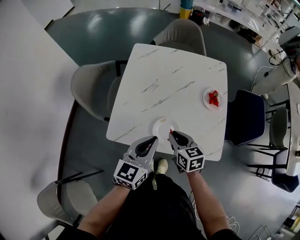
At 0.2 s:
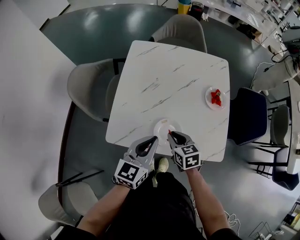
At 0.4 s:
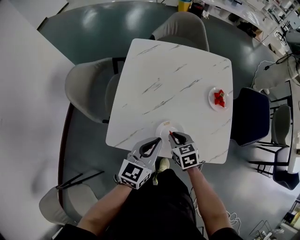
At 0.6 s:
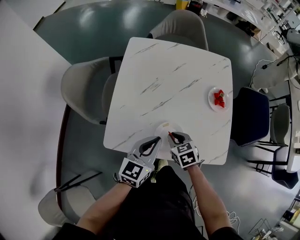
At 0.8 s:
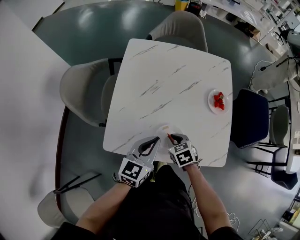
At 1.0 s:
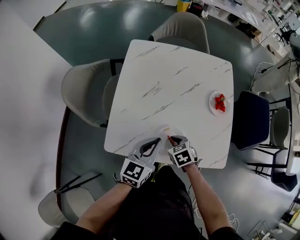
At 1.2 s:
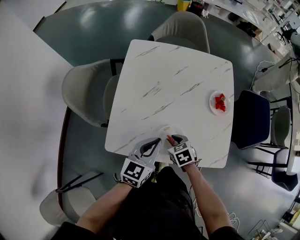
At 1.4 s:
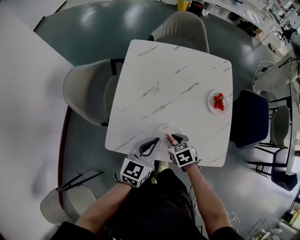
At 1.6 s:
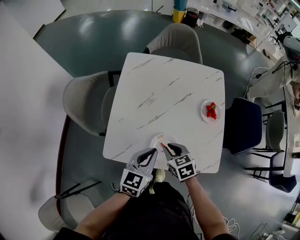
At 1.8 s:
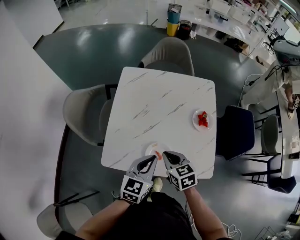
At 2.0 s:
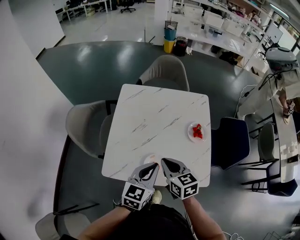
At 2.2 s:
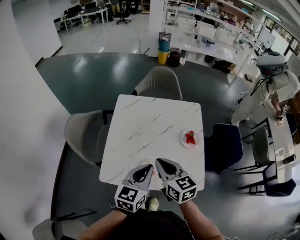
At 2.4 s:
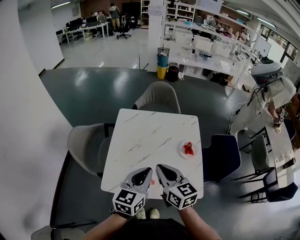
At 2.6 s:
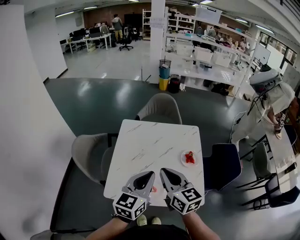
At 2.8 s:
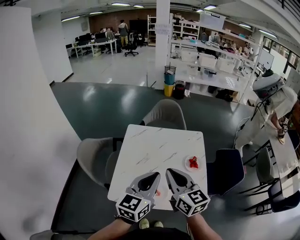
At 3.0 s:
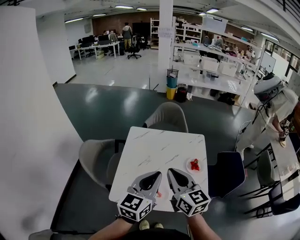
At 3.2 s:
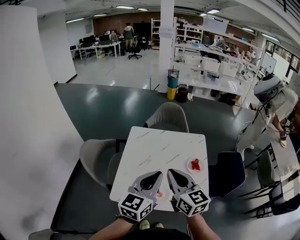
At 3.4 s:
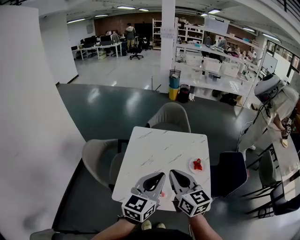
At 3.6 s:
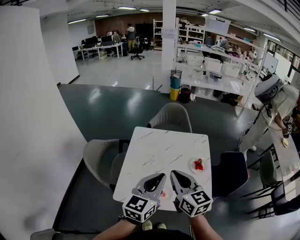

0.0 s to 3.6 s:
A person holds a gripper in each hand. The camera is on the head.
0.0 to 1.8 s: The left gripper reaches approximately 10 cm downward, then returns. The right gripper moves about 15 cm downward and comes back.
1.8 to 3.6 s: Both grippers travel together upward, roughly 25 cm. The right gripper angles its fingers upward, by some 30 degrees.

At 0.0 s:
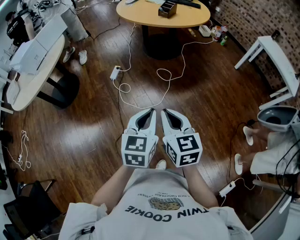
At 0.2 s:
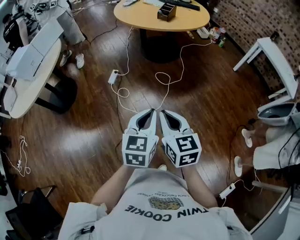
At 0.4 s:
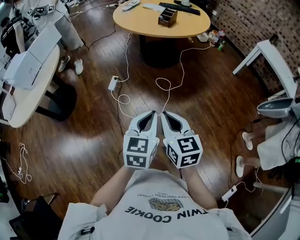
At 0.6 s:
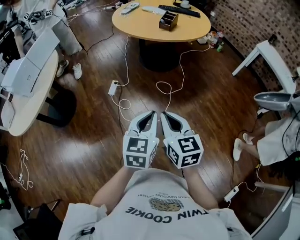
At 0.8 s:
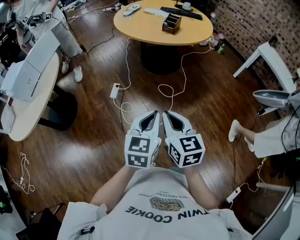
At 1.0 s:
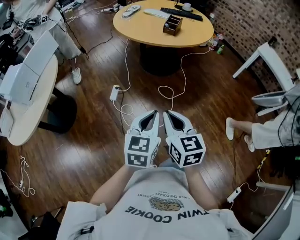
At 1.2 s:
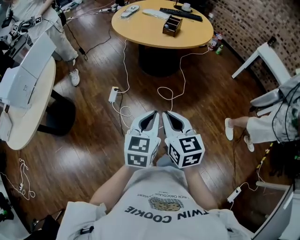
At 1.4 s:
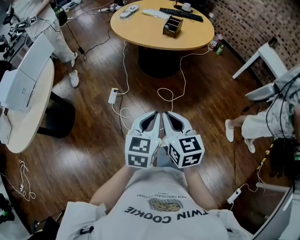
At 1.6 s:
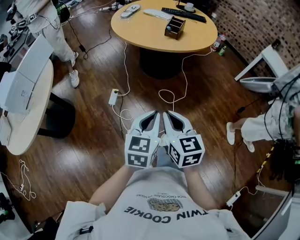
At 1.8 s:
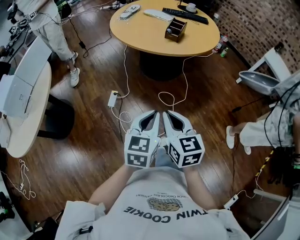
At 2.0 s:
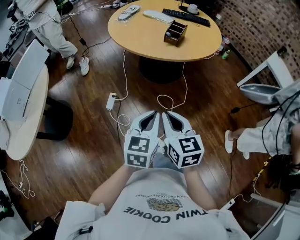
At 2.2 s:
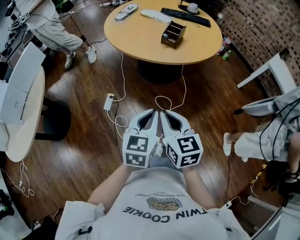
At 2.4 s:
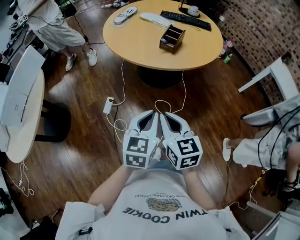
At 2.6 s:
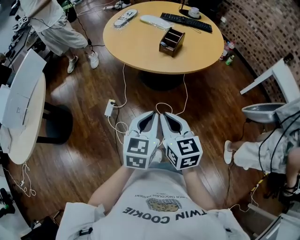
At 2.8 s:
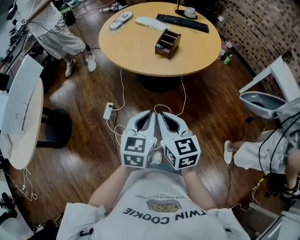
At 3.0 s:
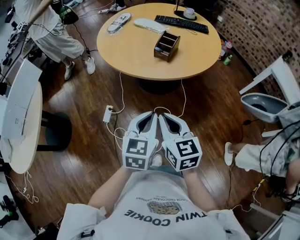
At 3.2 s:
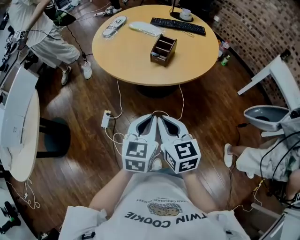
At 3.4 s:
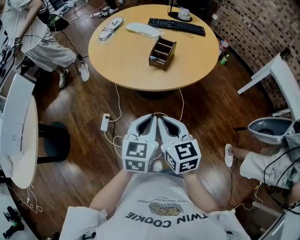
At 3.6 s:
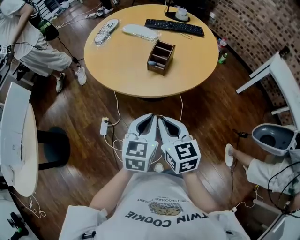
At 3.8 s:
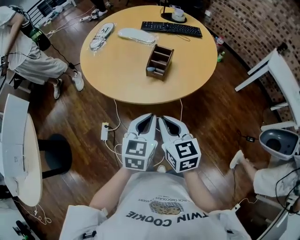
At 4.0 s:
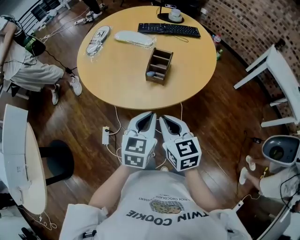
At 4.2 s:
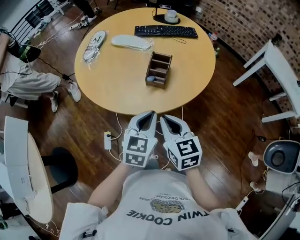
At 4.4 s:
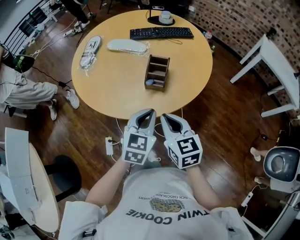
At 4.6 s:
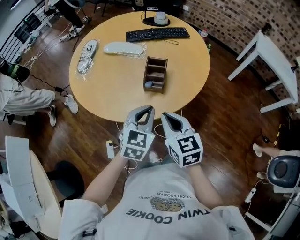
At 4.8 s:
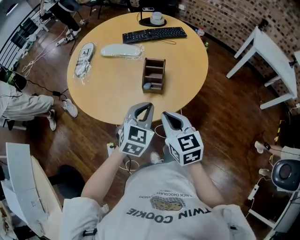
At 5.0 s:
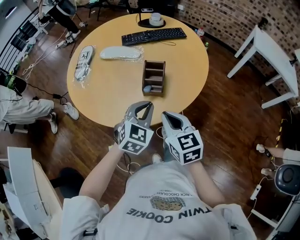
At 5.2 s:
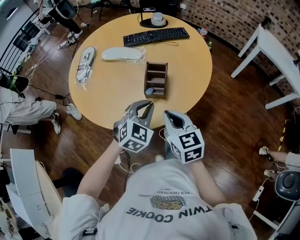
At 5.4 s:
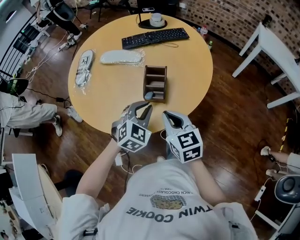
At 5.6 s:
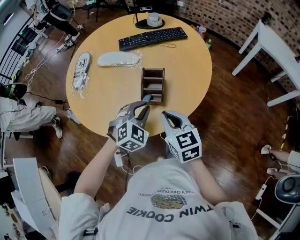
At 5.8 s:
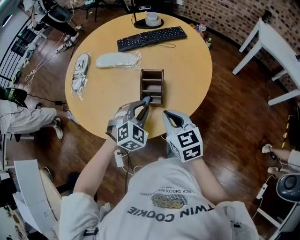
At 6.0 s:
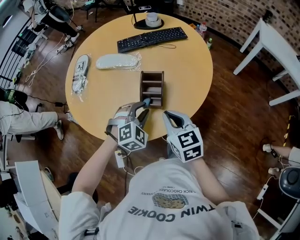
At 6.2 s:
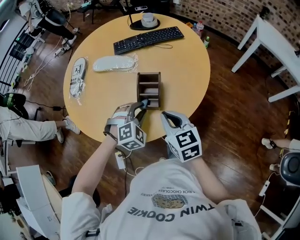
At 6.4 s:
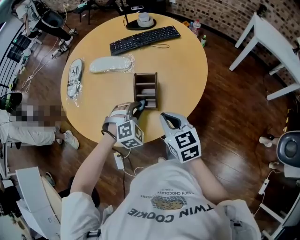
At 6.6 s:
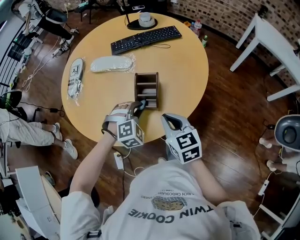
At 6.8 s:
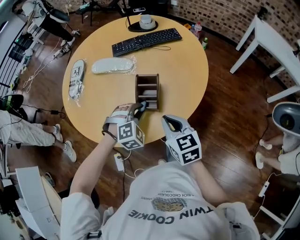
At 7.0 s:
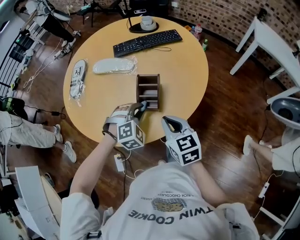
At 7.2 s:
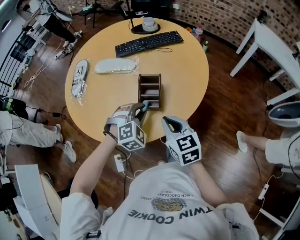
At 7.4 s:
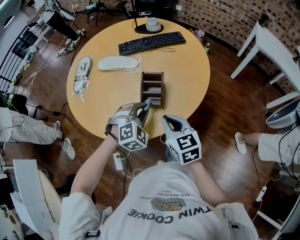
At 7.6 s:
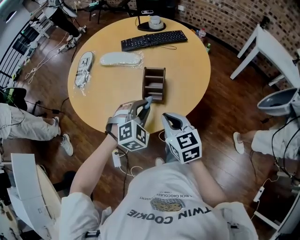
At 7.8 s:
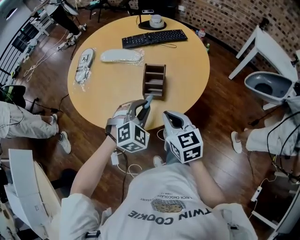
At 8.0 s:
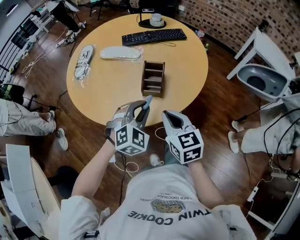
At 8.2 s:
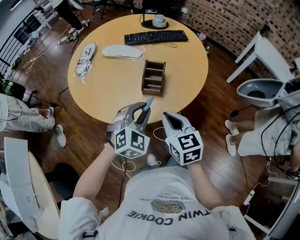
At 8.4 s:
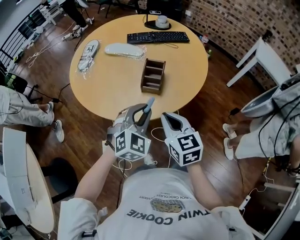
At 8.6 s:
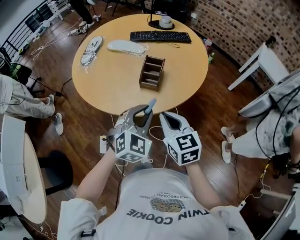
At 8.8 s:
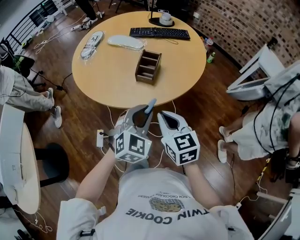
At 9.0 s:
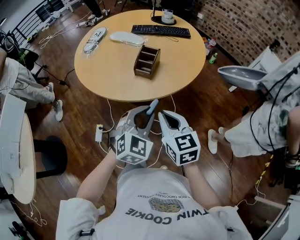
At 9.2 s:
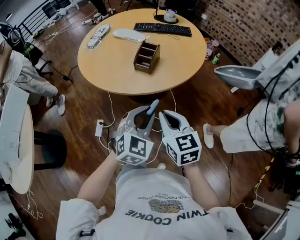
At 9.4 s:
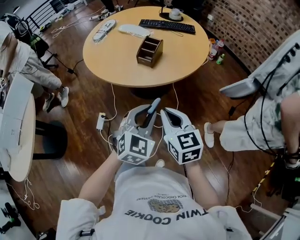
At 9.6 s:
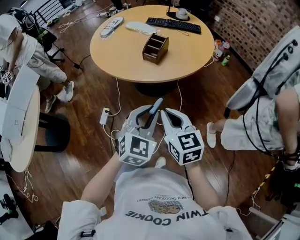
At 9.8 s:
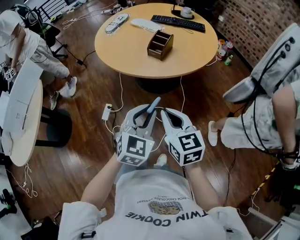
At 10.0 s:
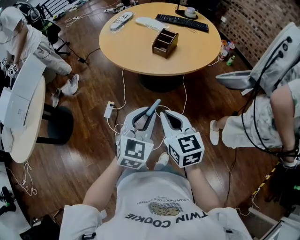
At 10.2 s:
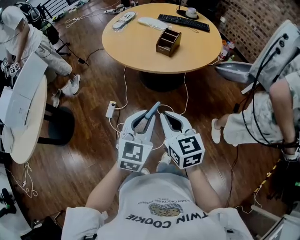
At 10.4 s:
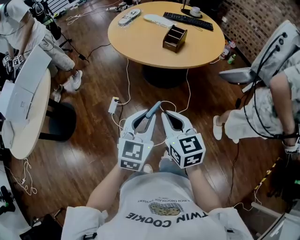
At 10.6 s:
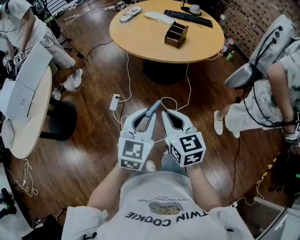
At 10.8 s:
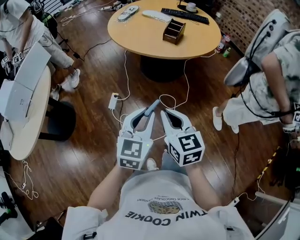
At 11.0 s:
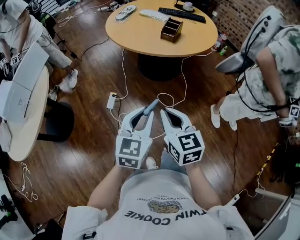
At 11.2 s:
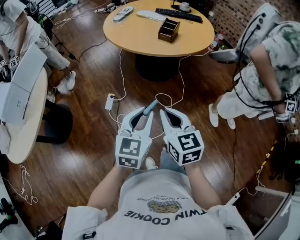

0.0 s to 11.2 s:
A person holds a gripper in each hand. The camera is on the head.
0.0 to 1.6 s: Both grippers move forward and to the left, about 30 cm.
1.6 to 3.2 s: The two grippers go some 30 cm forward and to the right.
3.2 to 4.8 s: The grippers both shift forward by approximately 25 cm. The left gripper swivels some 40 degrees.
4.8 to 6.4 s: Both grippers travel together forward and downward, some 15 cm. The left gripper twists roughly 50 degrees clockwise, seen from behind.
6.4 to 8.0 s: The left gripper is displaced backward and upward by about 15 cm, and rotates some 20 degrees; the right gripper goes roughly 10 cm backward.
8.0 to 9.6 s: The two grippers go about 30 cm backward and to the right. The left gripper rotates approximately 30 degrees, while the right gripper turns by about 20 degrees.
9.6 to 11.2 s: The two grippers go approximately 25 cm backward and to the left. The left gripper rotates roughly 20 degrees.

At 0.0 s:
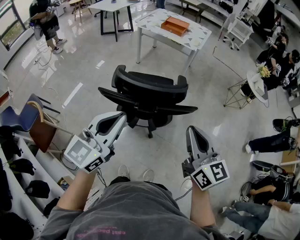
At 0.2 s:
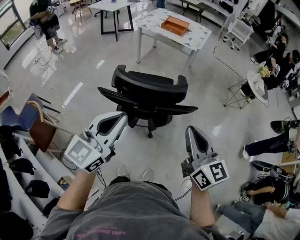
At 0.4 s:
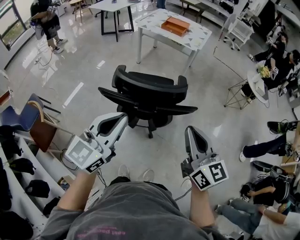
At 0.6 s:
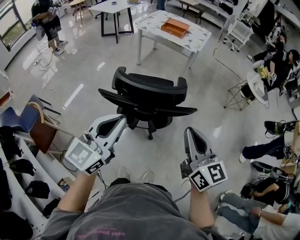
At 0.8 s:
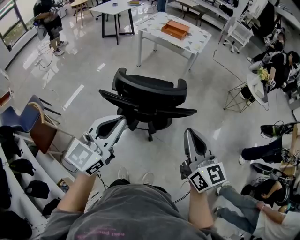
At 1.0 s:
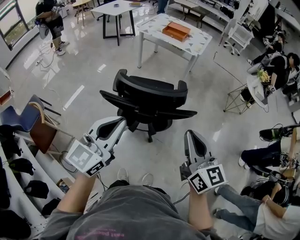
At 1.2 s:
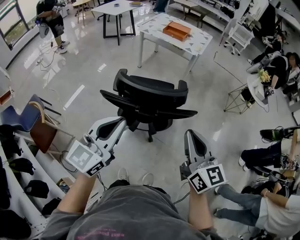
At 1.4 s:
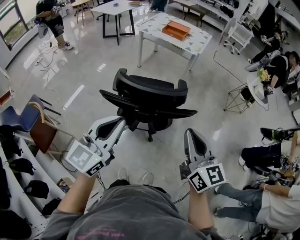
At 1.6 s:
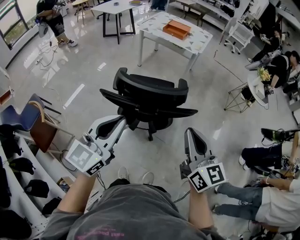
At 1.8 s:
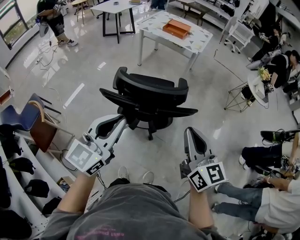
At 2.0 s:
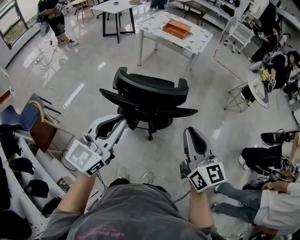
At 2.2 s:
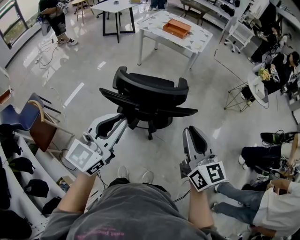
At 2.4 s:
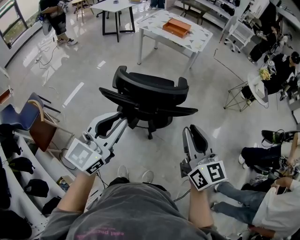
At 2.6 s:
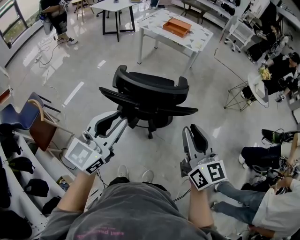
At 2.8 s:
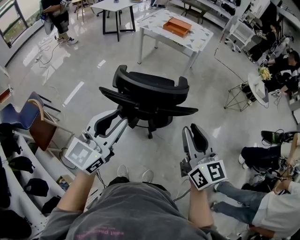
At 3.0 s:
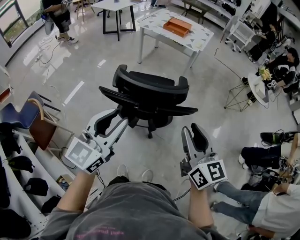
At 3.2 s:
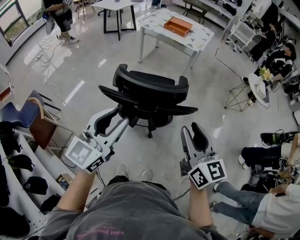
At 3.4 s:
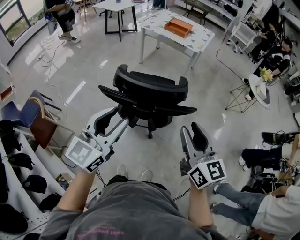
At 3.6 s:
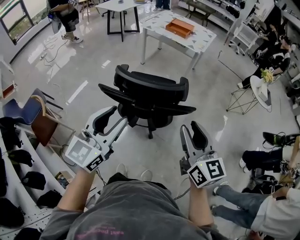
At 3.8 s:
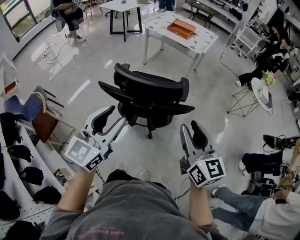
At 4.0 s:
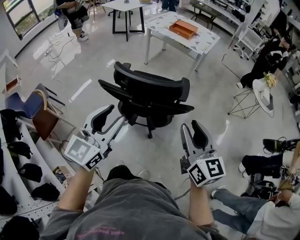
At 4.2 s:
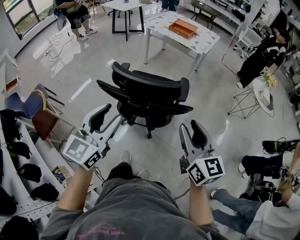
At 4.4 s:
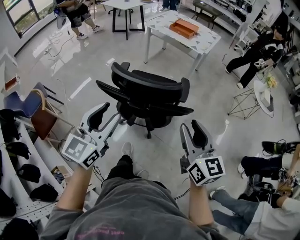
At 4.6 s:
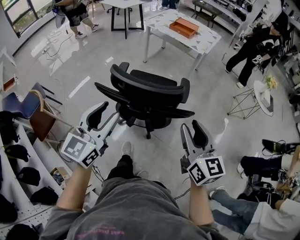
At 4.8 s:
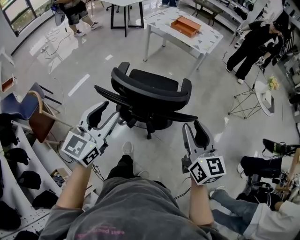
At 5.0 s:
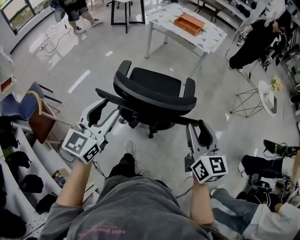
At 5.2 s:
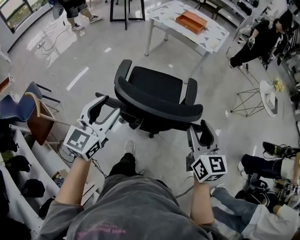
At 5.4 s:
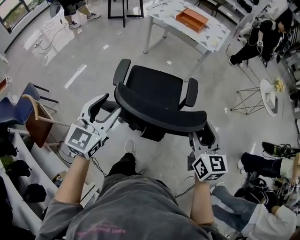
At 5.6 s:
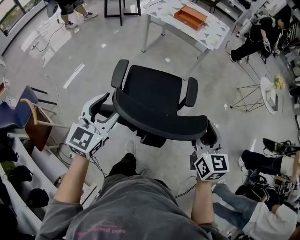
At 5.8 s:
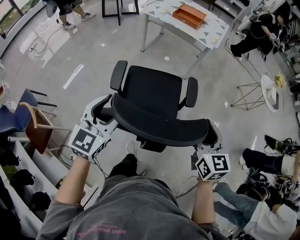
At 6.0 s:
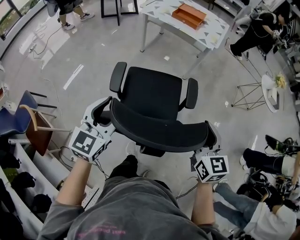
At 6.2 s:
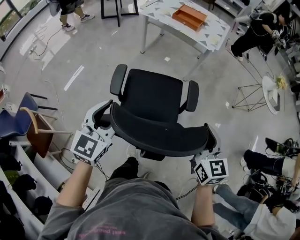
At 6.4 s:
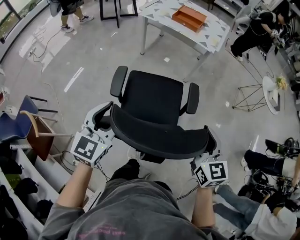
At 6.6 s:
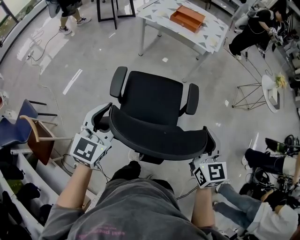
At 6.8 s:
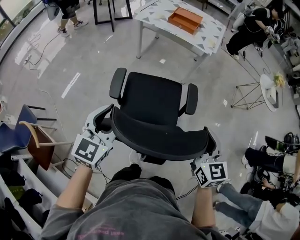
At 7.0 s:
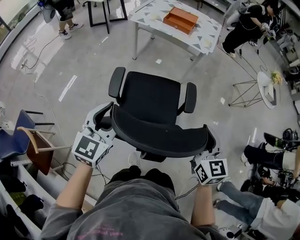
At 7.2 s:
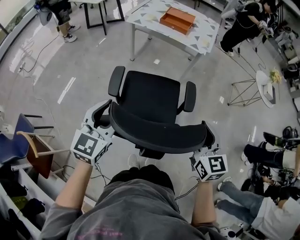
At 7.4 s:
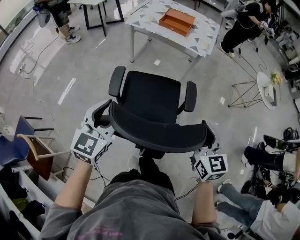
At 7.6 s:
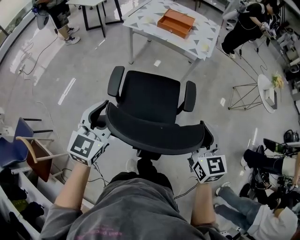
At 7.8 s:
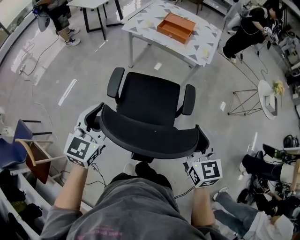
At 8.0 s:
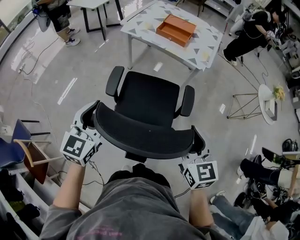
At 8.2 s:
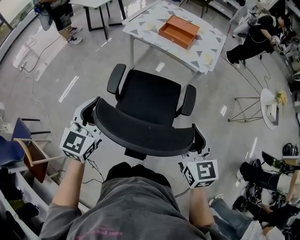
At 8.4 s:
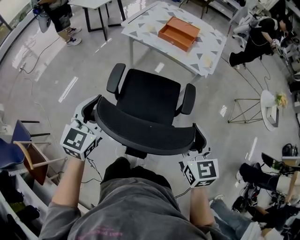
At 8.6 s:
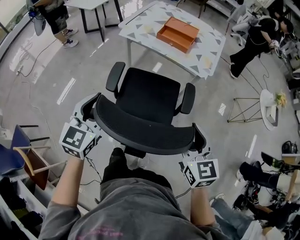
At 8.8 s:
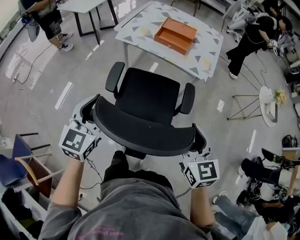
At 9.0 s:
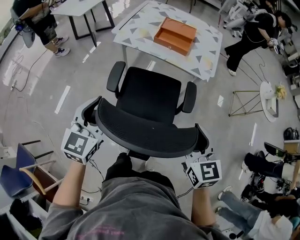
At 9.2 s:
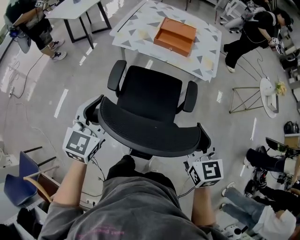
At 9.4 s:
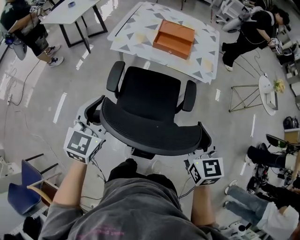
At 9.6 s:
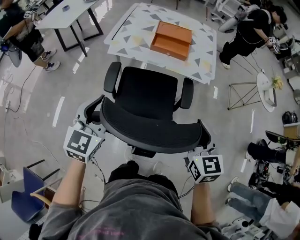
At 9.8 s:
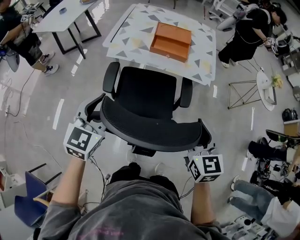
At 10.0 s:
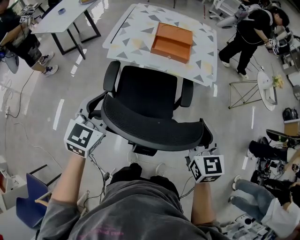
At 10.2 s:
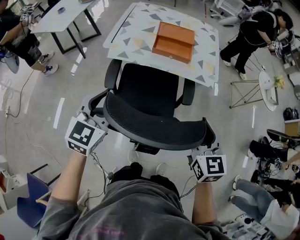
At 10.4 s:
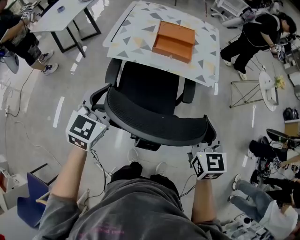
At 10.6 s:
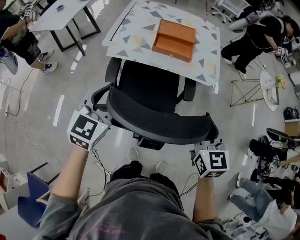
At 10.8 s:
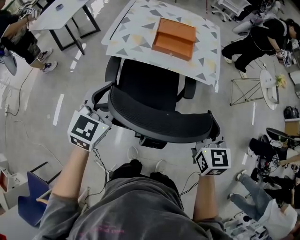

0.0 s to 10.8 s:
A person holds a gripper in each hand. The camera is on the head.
0.0 to 1.6 s: Both grippers stay put.
1.6 to 3.0 s: The left gripper opens. The right gripper opens its fingers.
3.0 to 4.6 s: The right gripper changes place by about 5 cm.
4.6 to 6.2 s: The grippers both shift forward and downward by roughly 20 cm. The right gripper opens.
6.2 to 7.8 s: The grippers both shift forward by roughly 20 cm.
7.8 to 9.2 s: The right gripper heads forward and to the left, covering some 20 cm, while the left gripper travels forward by roughly 25 cm.
9.2 to 10.8 s: The two grippers go some 15 cm forward.
